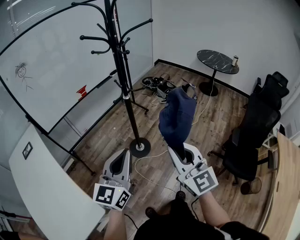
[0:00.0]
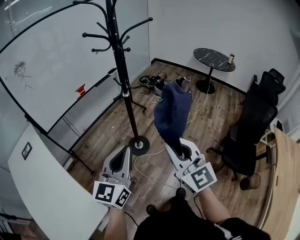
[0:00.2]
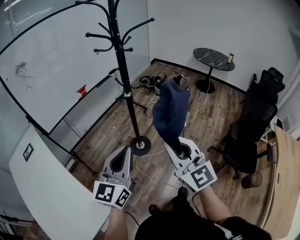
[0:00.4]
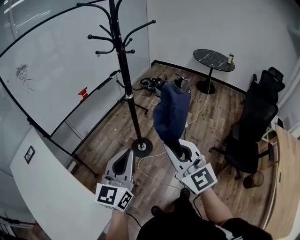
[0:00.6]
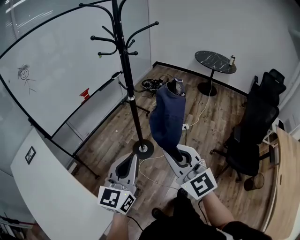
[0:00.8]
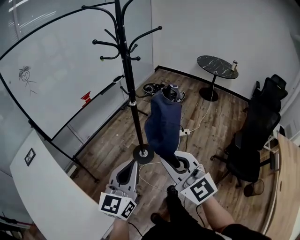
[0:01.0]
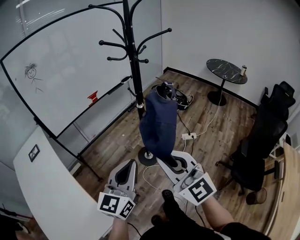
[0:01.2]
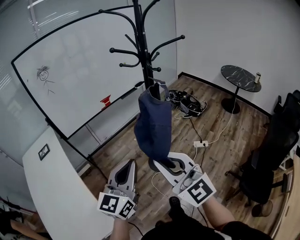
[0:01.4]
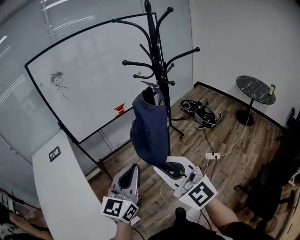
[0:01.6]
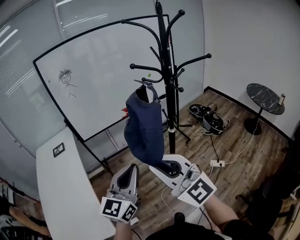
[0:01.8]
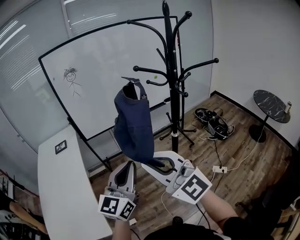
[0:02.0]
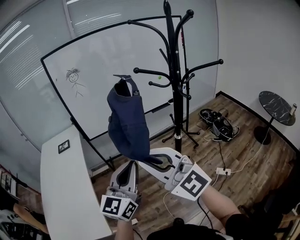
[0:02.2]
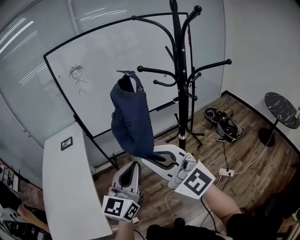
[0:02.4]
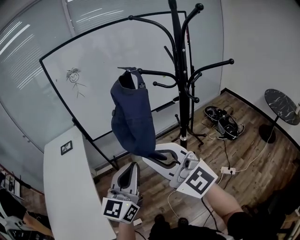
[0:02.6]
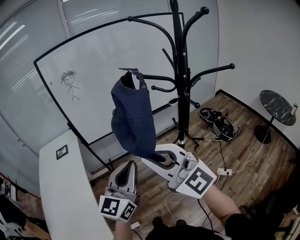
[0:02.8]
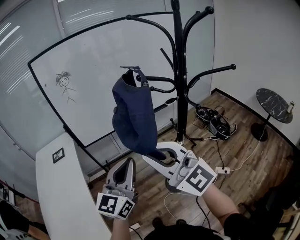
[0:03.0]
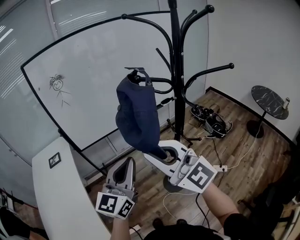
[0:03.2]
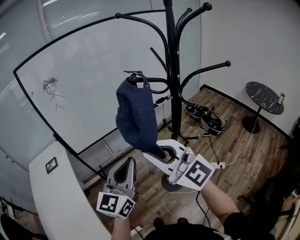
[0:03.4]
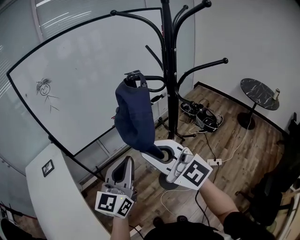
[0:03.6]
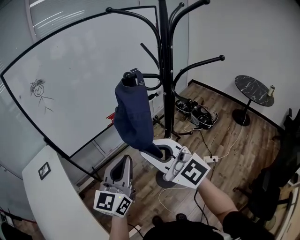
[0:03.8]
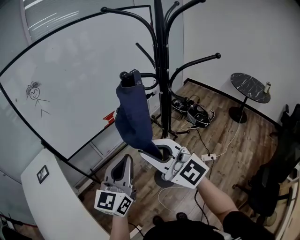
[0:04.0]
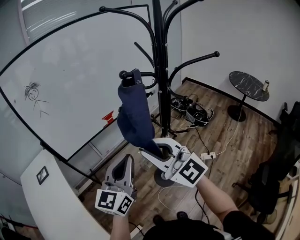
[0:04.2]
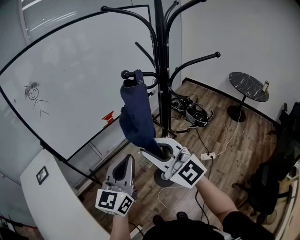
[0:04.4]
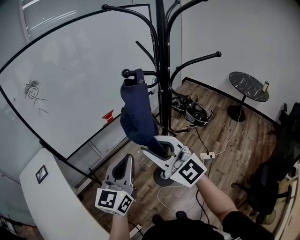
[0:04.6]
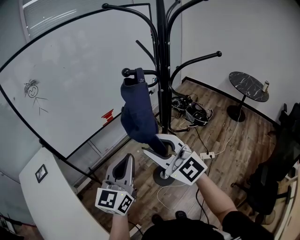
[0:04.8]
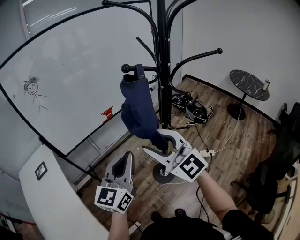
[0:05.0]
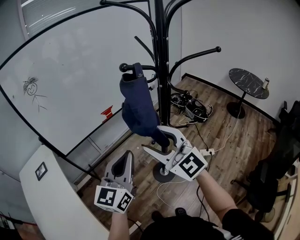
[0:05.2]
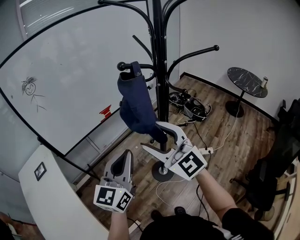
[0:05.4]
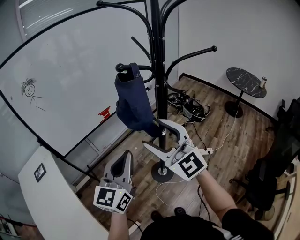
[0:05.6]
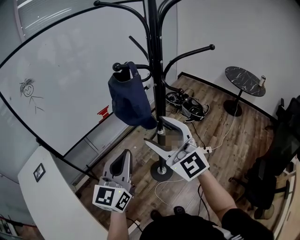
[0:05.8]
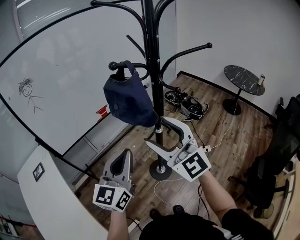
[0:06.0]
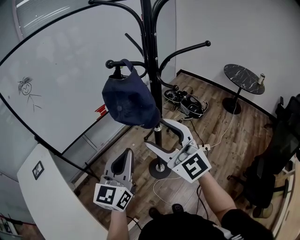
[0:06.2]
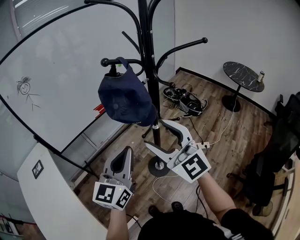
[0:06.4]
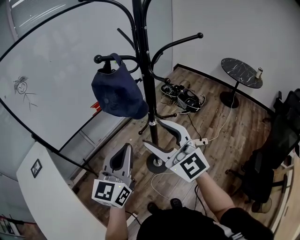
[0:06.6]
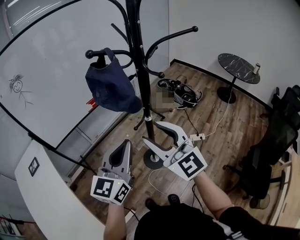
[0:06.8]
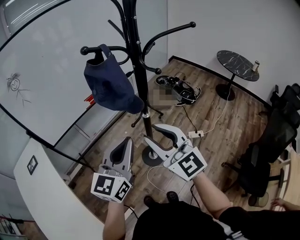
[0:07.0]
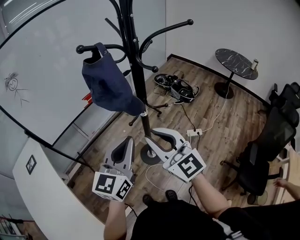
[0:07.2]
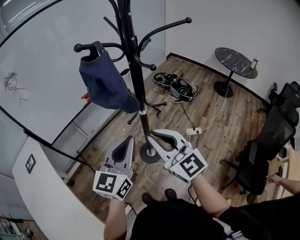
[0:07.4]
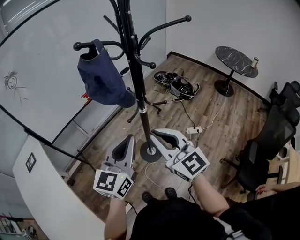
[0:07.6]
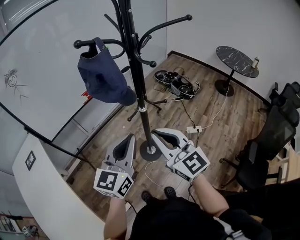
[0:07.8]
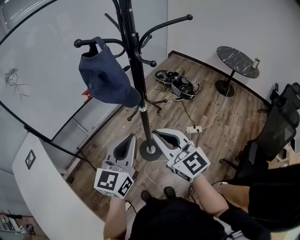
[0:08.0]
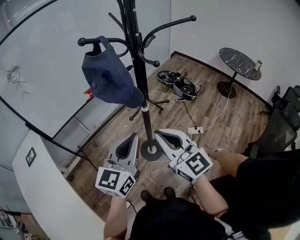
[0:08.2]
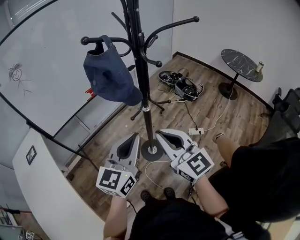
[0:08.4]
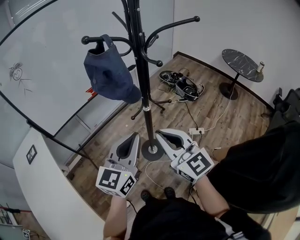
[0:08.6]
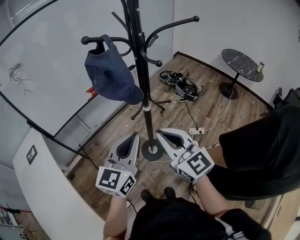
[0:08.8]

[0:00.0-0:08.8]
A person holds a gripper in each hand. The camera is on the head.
0:00.0 to 0:01.4: The right gripper goes some 15 cm to the left and upward, and rotates some 30 degrees. Meanwhile the left gripper goes about 5 cm to the left.
0:01.4 to 0:03.0: The left gripper changes place by roughly 20 cm. The right gripper changes place by some 20 cm, and changes its angle by some 30 degrees.
0:03.0 to 0:04.4: The left gripper shifts by roughly 5 cm; the right gripper travels downward and forward by some 10 cm, and swivels roughly 20 degrees.
0:04.4 to 0:05.8: The right gripper is displaced to the right by approximately 5 cm, and opens.
0:05.8 to 0:07.4: The right gripper shifts approximately 10 cm downward, backward and to the right, rotates about 20 degrees, and closes its fingers. The left gripper heads to the right, covering approximately 10 cm.
0:07.4 to 0:08.8: There are only small adjustments of the grippers.

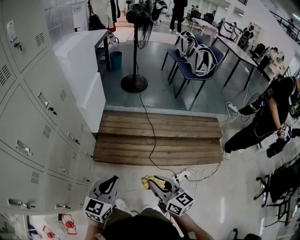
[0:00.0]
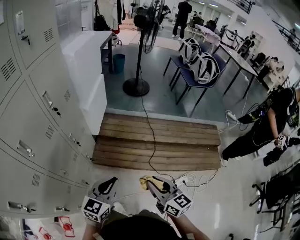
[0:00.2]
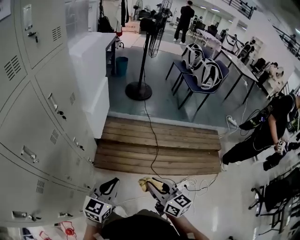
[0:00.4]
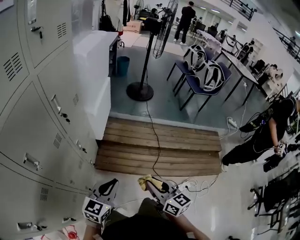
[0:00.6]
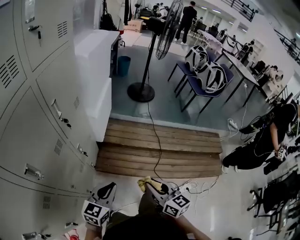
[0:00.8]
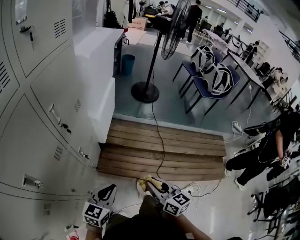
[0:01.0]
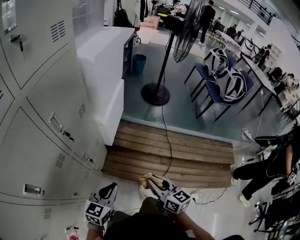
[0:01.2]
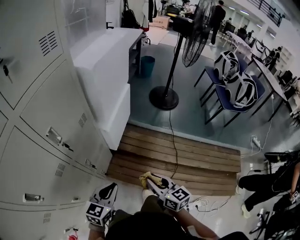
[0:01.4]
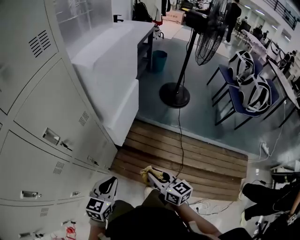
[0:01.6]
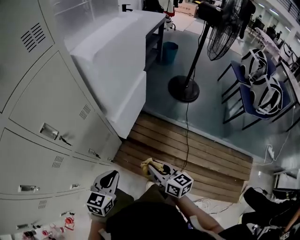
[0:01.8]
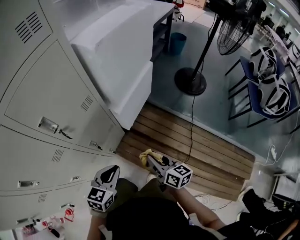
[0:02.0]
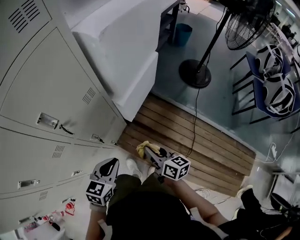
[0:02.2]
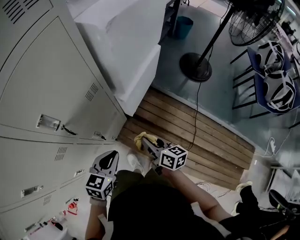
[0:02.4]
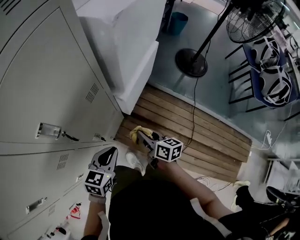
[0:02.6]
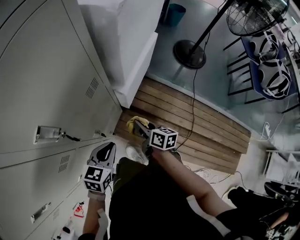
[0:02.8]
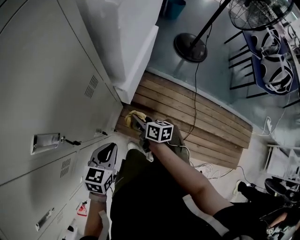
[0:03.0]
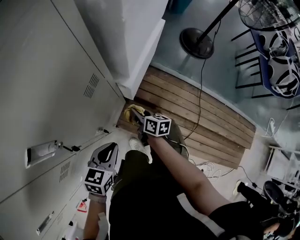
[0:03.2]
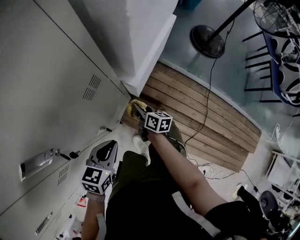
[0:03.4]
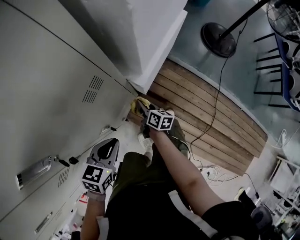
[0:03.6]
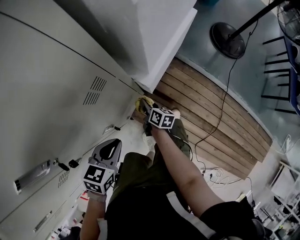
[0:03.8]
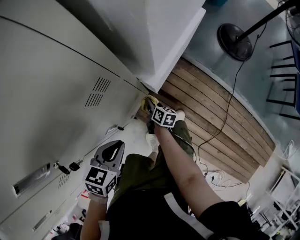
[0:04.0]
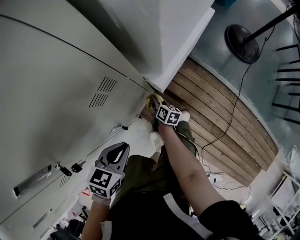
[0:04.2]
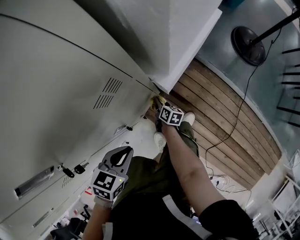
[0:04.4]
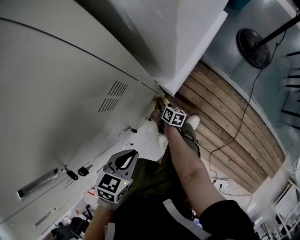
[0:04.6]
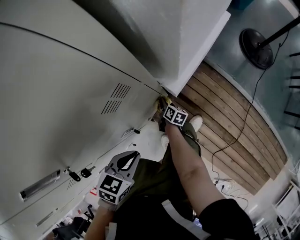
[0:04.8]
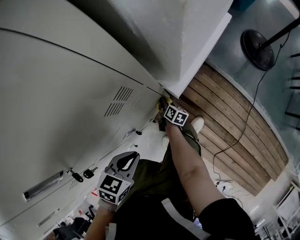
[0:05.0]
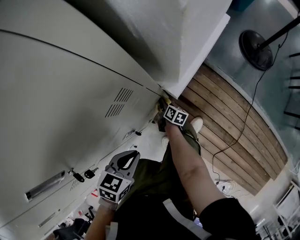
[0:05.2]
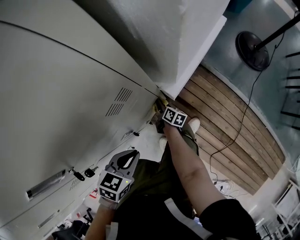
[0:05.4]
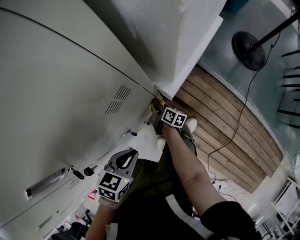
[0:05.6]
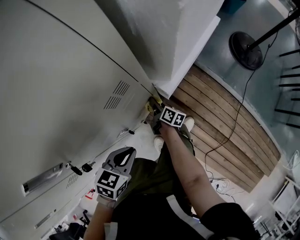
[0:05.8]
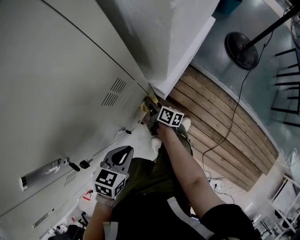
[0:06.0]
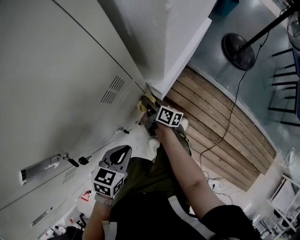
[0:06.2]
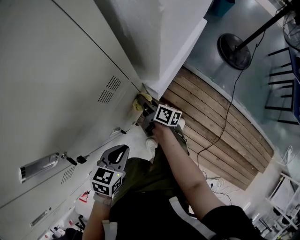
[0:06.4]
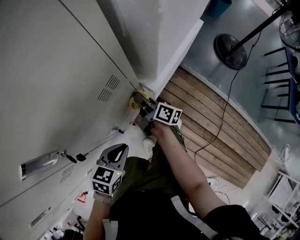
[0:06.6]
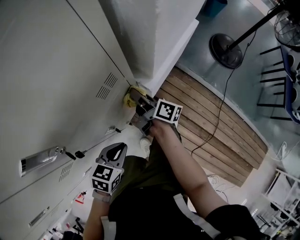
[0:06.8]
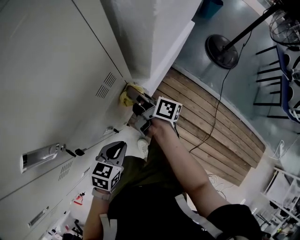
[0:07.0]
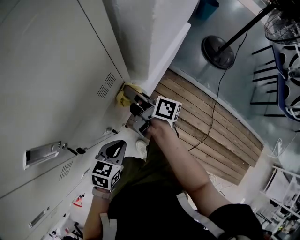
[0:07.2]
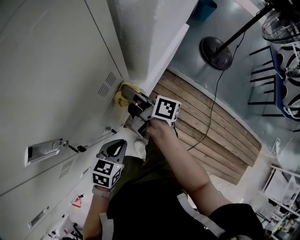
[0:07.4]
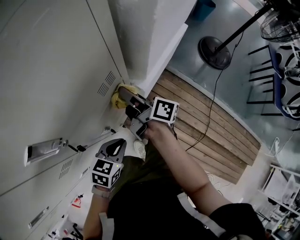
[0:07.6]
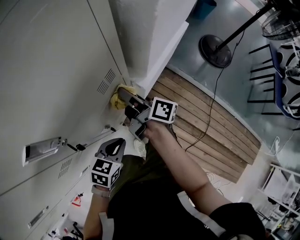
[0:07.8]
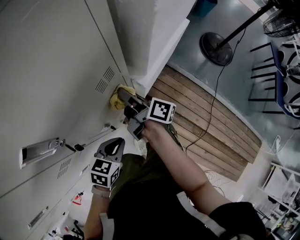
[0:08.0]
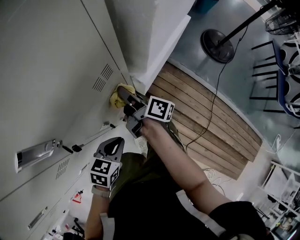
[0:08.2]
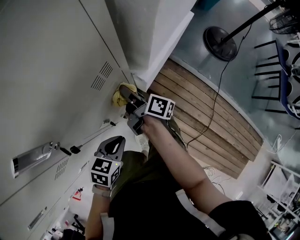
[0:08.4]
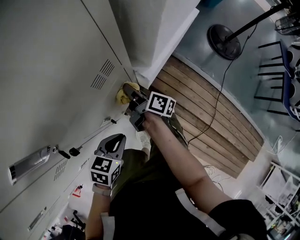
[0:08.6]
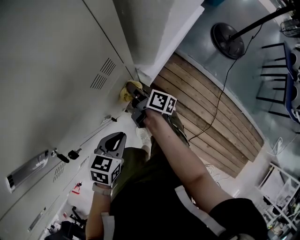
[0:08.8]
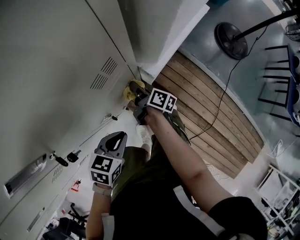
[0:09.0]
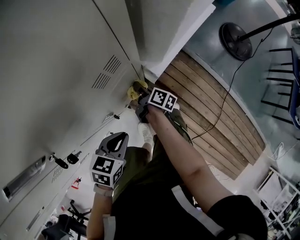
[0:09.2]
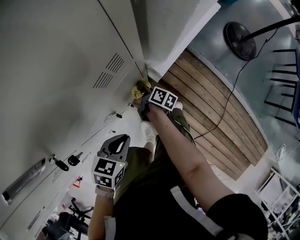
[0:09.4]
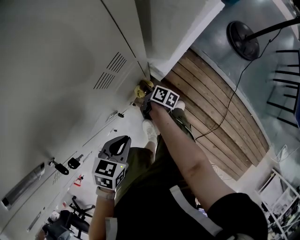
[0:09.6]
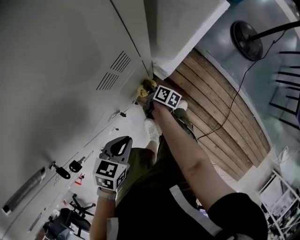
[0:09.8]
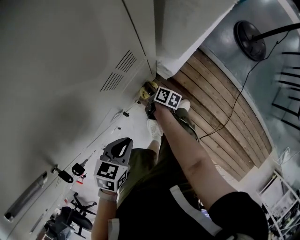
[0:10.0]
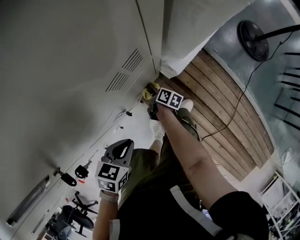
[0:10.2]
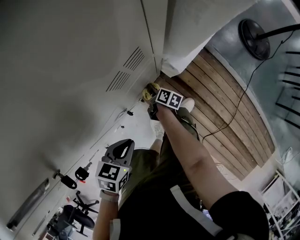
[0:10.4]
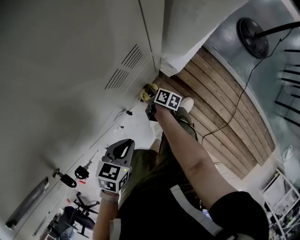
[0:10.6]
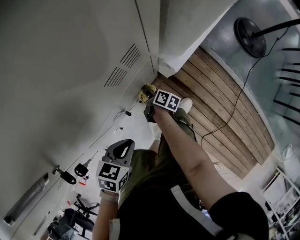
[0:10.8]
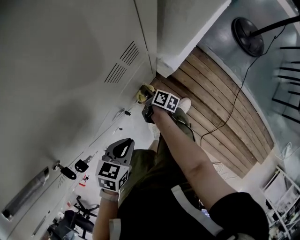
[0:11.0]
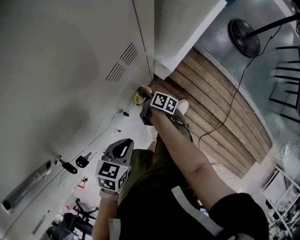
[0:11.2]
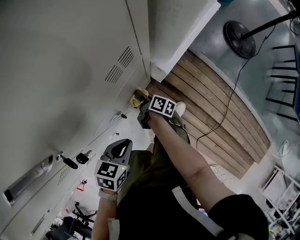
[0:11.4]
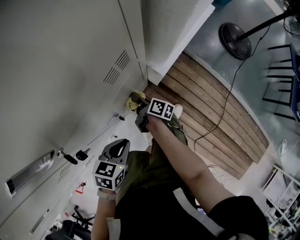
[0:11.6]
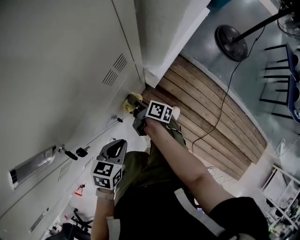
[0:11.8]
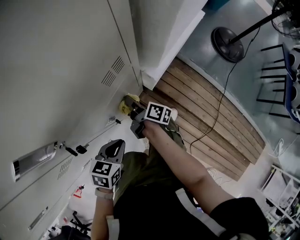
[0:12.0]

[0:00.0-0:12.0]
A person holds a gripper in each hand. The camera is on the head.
0:00.0 to 0:01.6: The left gripper heads forward and to the left, covering some 35 cm, and swivels roughly 20 degrees; the right gripper is displaced forward by some 40 cm, and turns by roughly 20 degrees.
0:01.6 to 0:03.0: The left gripper heads forward, downward and to the left, covering about 20 cm. The right gripper goes roughly 35 cm forward, downward and to the left, and changes its angle by about 30 degrees.
0:03.0 to 0:04.4: The right gripper shifts approximately 30 cm downward and forward. The left gripper is displaced downward by about 5 cm.
0:04.4 to 0:06.0: The right gripper moves upward, approximately 10 cm, and swivels roughly 20 degrees.
0:06.0 to 0:07.6: The right gripper is displaced upward by roughly 30 cm, and rotates approximately 20 degrees.
0:07.6 to 0:09.0: The right gripper travels downward by about 25 cm, and swivels approximately 20 degrees.
0:09.0 to 0:10.4: The right gripper is displaced downward by approximately 20 cm, while the left gripper moves some 5 cm.
0:10.4 to 0:12.0: The right gripper goes about 20 cm upward, and changes its angle by about 20 degrees.

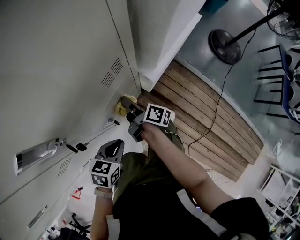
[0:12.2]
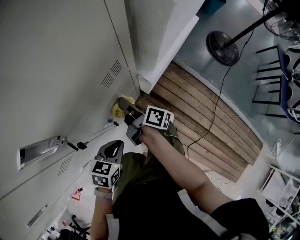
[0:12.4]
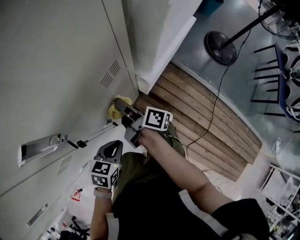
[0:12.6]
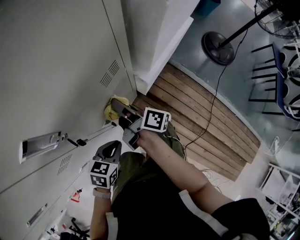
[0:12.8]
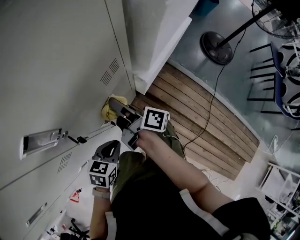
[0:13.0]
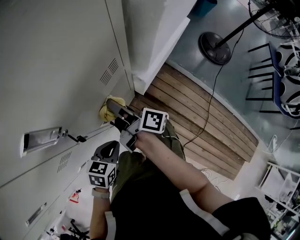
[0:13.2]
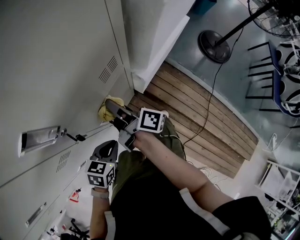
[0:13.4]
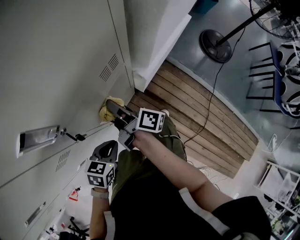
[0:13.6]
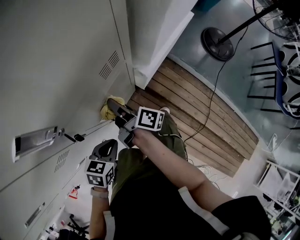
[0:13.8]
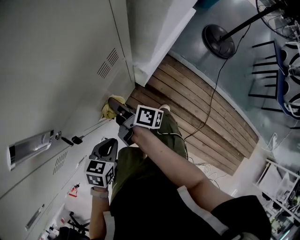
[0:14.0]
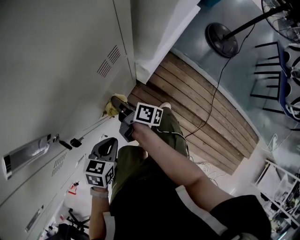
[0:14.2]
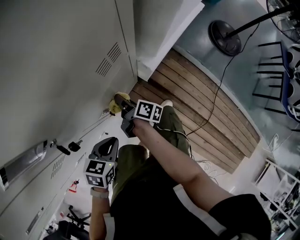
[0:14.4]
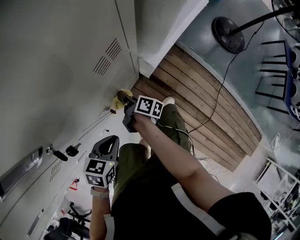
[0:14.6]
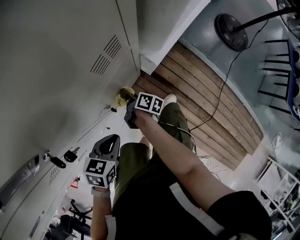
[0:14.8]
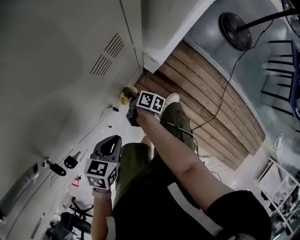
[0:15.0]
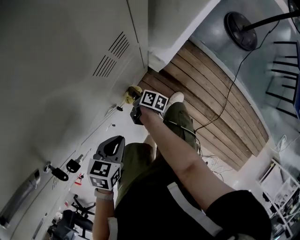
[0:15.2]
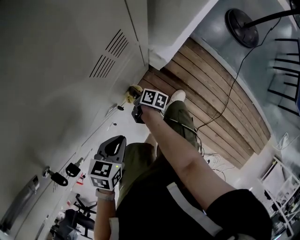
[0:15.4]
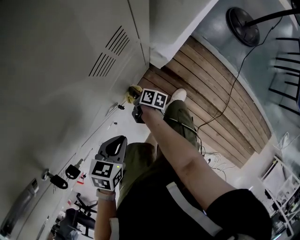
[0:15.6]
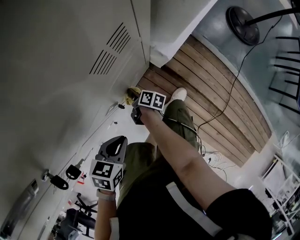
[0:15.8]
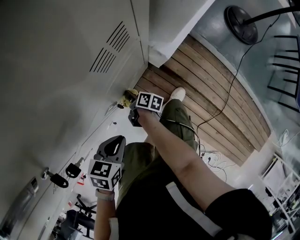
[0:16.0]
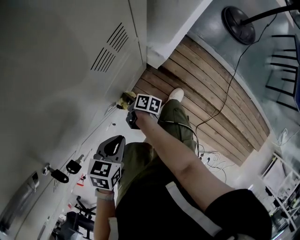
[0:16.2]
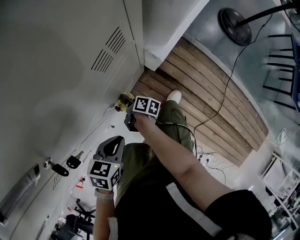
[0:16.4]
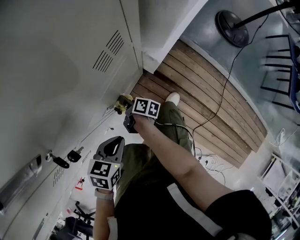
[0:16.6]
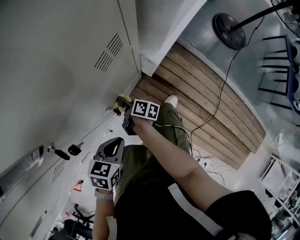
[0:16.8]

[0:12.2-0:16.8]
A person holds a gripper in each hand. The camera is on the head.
0:12.2 to 0:13.8: The right gripper heads upward, covering about 5 cm.
0:13.8 to 0:15.2: The right gripper travels downward by some 30 cm, and swivels about 30 degrees.
0:15.2 to 0:16.8: The right gripper is displaced upward by roughly 5 cm.
